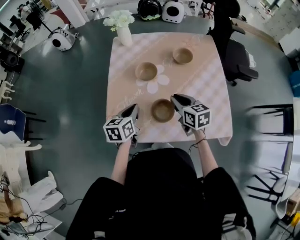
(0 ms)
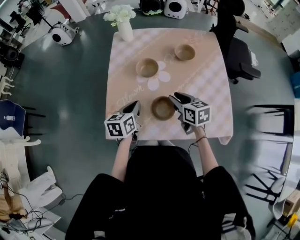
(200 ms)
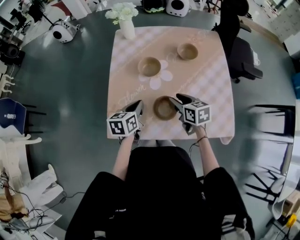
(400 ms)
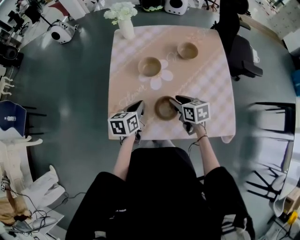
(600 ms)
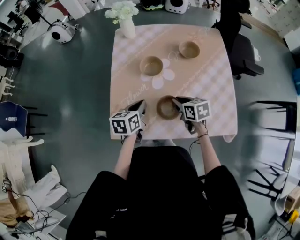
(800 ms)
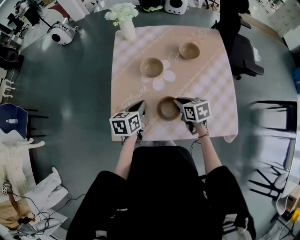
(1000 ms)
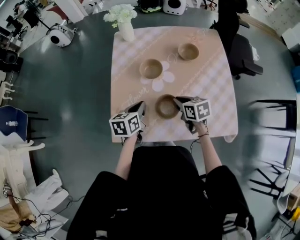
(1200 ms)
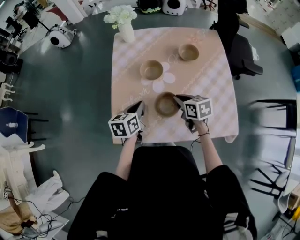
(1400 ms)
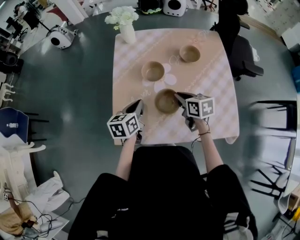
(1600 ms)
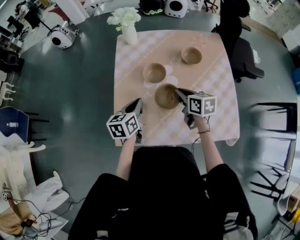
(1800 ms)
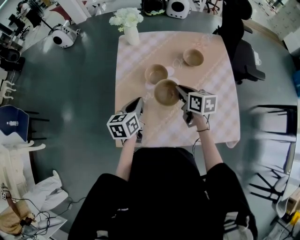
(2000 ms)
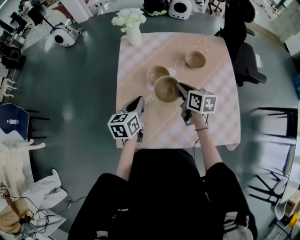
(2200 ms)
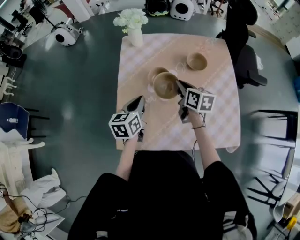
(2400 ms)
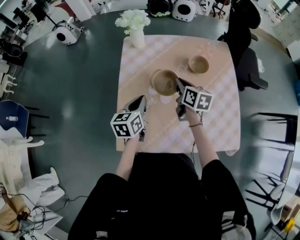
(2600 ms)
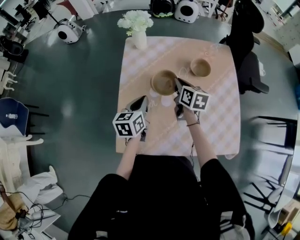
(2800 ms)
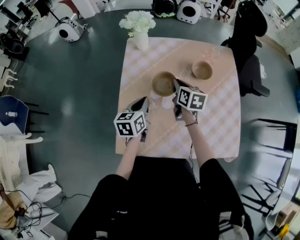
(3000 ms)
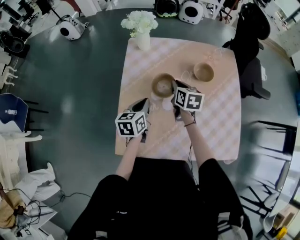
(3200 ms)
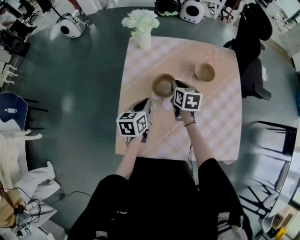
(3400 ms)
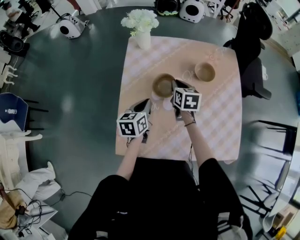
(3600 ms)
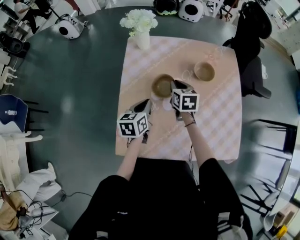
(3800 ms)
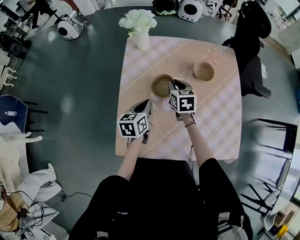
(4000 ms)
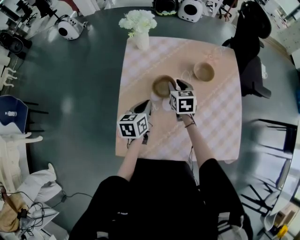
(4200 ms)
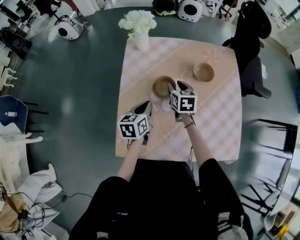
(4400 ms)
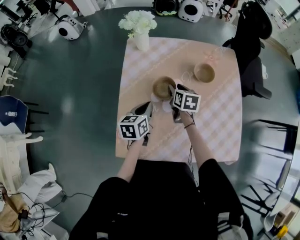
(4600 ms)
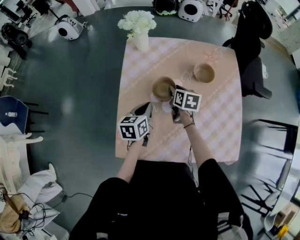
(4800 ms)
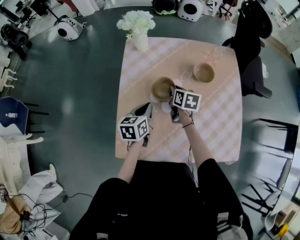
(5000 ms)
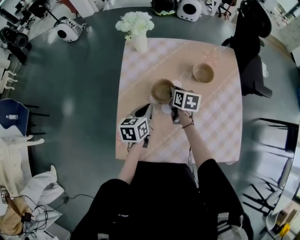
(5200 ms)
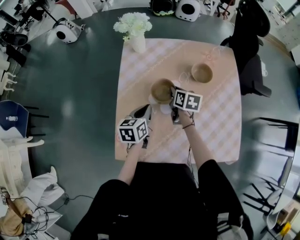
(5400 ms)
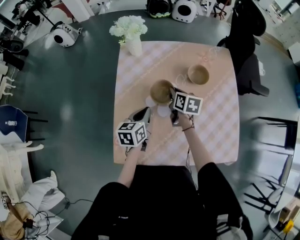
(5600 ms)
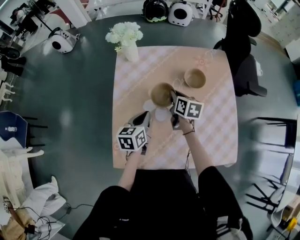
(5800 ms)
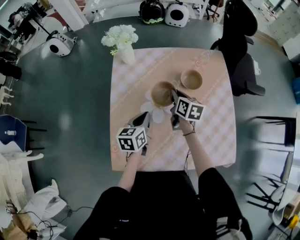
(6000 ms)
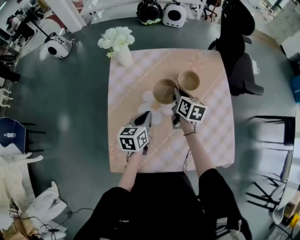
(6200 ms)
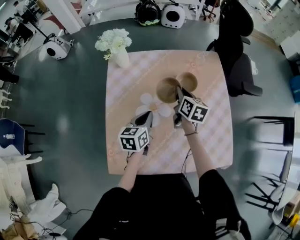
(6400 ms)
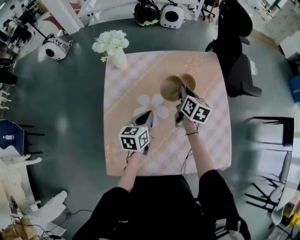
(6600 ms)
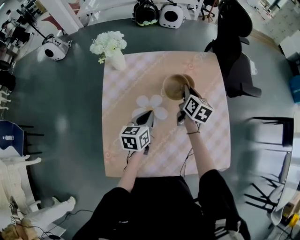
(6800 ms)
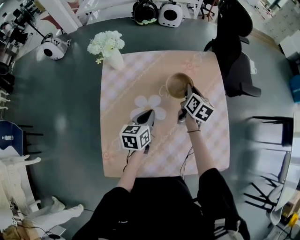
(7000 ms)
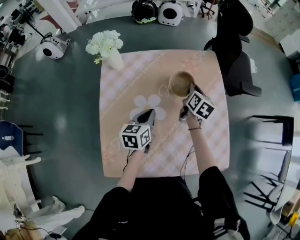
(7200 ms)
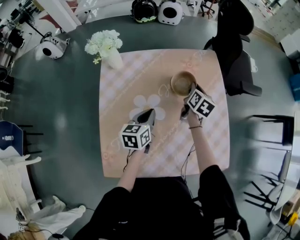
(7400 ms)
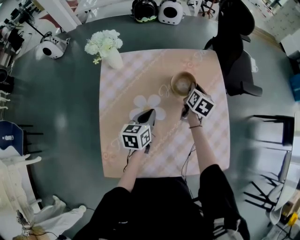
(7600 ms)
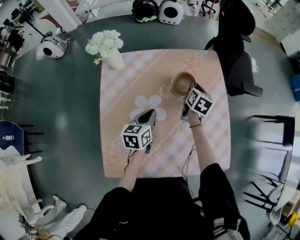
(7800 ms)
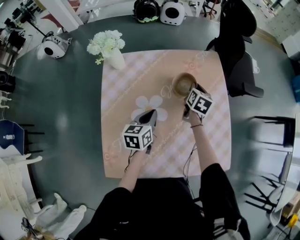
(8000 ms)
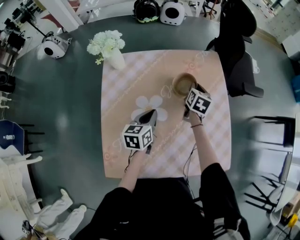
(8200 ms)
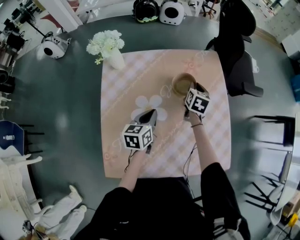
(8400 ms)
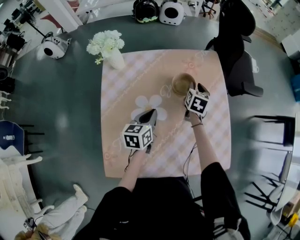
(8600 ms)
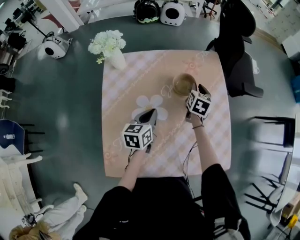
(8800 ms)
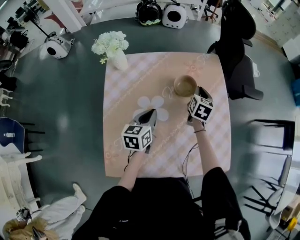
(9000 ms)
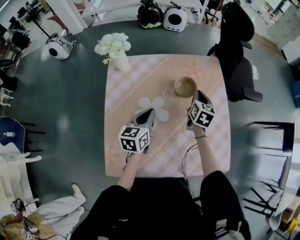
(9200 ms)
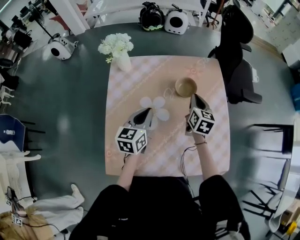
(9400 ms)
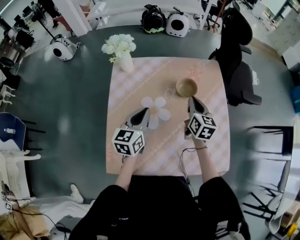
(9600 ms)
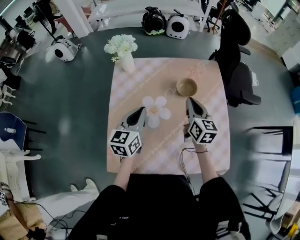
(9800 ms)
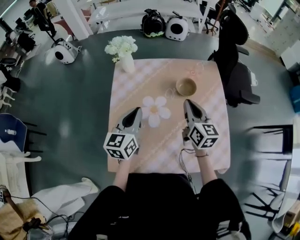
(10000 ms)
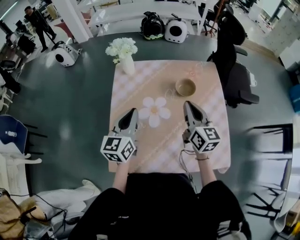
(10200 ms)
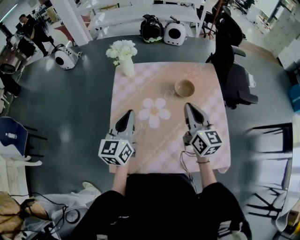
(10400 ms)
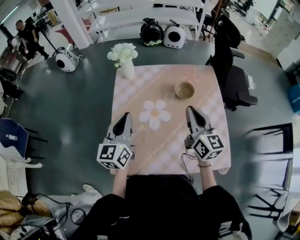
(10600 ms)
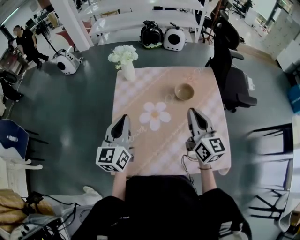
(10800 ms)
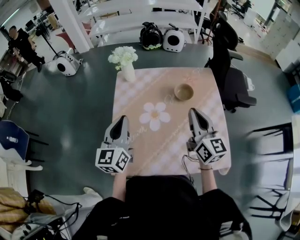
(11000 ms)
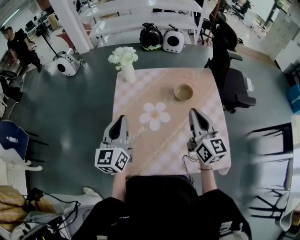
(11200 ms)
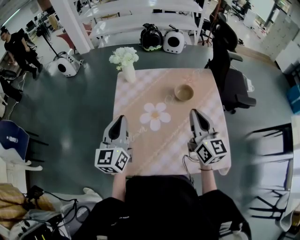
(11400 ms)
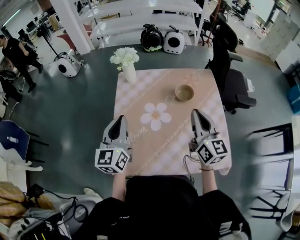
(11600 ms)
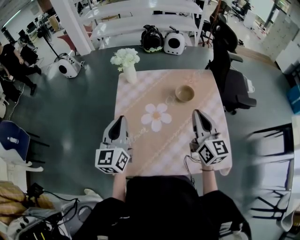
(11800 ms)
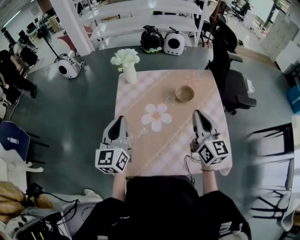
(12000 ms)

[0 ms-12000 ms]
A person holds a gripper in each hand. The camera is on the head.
0 ms to 1600 ms: The right gripper changes place by approximately 5 cm, and opens, then closes once more.
1600 ms to 3000 ms: The left gripper goes some 5 cm forward; the right gripper goes some 15 cm forward.
3000 ms to 4400 ms: The right gripper opens its fingers.
4400 ms to 6000 ms: The right gripper heads to the right, covering approximately 5 cm, rotates some 20 degrees, and closes up.
6000 ms to 7600 ms: The right gripper is displaced to the right and forward by about 20 cm, and rotates roughly 20 degrees. Meanwhile the left gripper heads to the right and forward, covering approximately 10 cm.
7600 ms to 9000 ms: The grippers move only a little.
9000 ms to 10400 ms: The right gripper goes roughly 25 cm backward, upward and to the left, and rotates about 40 degrees. The left gripper moves upward, to the left and backward, about 20 cm, and rotates roughly 30 degrees.
10400 ms to 12000 ms: The right gripper changes place by roughly 5 cm. Meanwhile the left gripper moves about 5 cm.

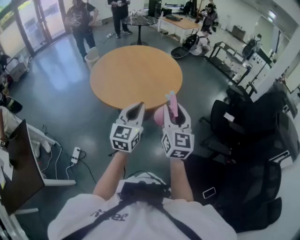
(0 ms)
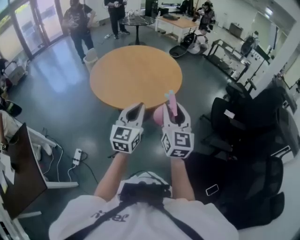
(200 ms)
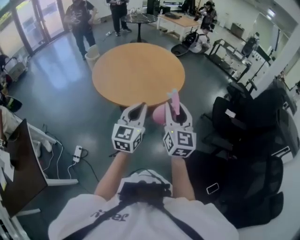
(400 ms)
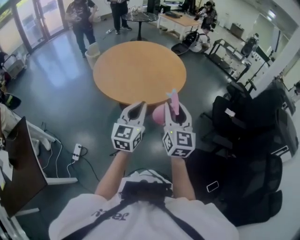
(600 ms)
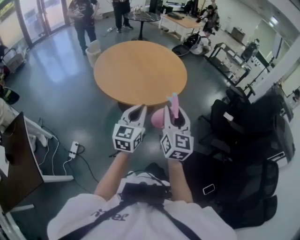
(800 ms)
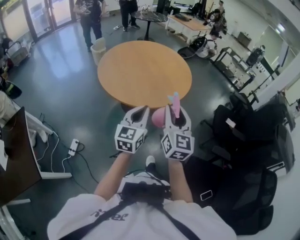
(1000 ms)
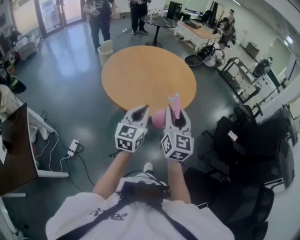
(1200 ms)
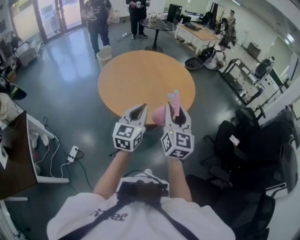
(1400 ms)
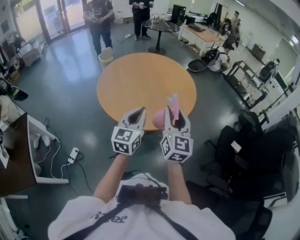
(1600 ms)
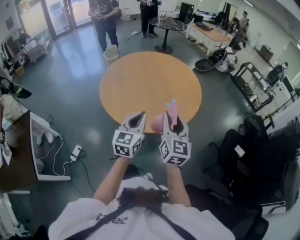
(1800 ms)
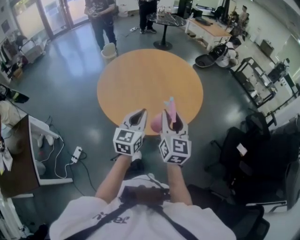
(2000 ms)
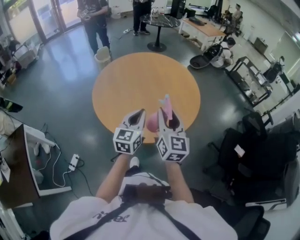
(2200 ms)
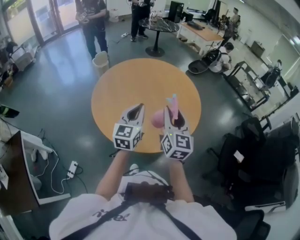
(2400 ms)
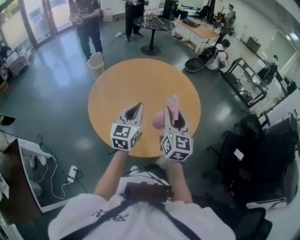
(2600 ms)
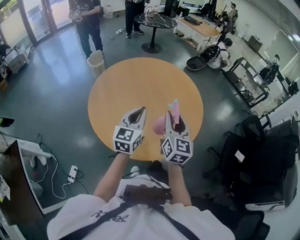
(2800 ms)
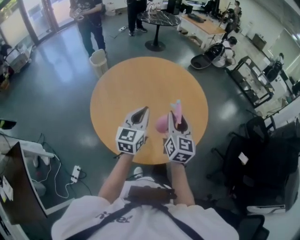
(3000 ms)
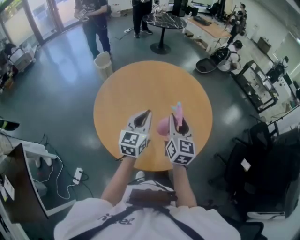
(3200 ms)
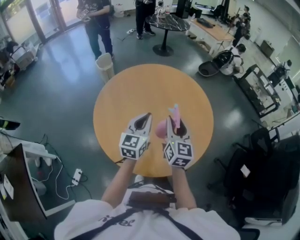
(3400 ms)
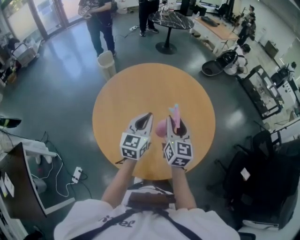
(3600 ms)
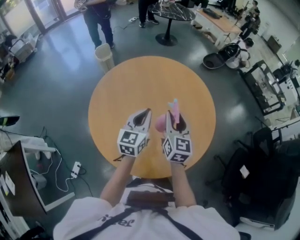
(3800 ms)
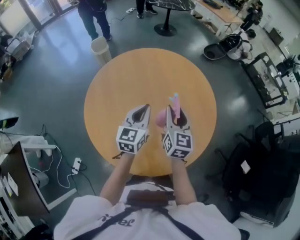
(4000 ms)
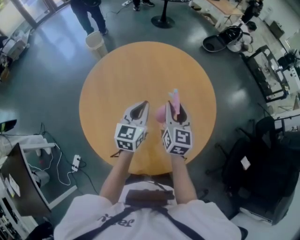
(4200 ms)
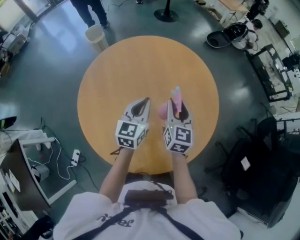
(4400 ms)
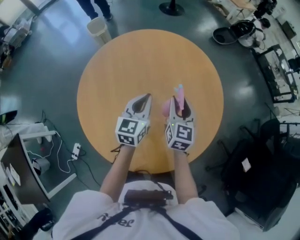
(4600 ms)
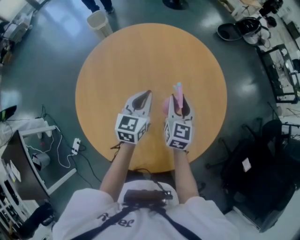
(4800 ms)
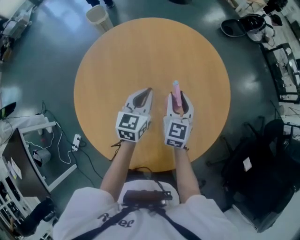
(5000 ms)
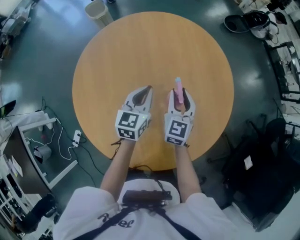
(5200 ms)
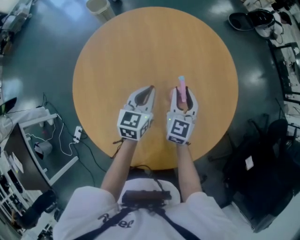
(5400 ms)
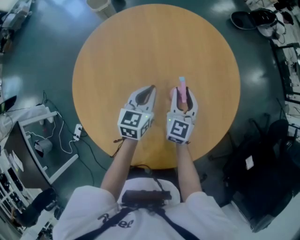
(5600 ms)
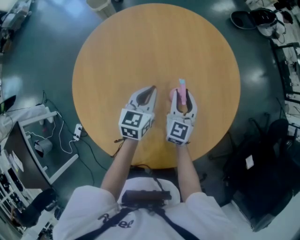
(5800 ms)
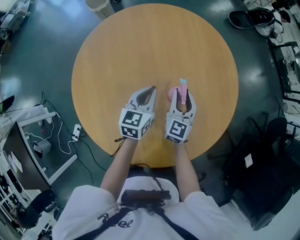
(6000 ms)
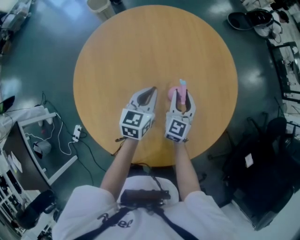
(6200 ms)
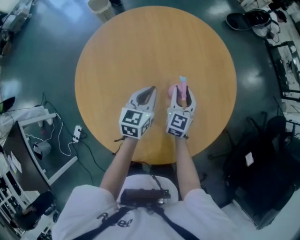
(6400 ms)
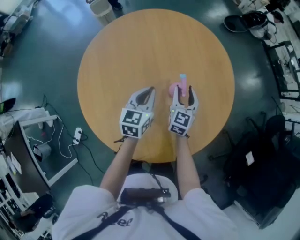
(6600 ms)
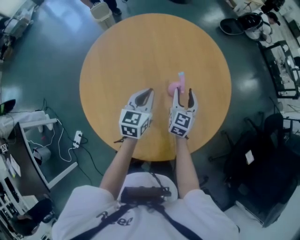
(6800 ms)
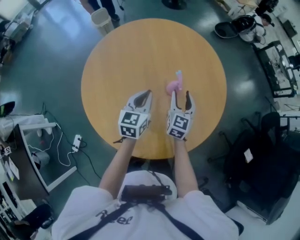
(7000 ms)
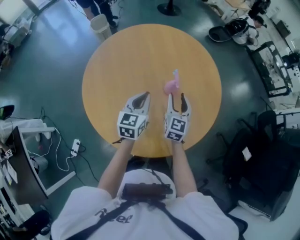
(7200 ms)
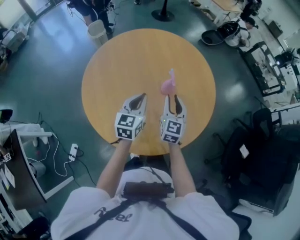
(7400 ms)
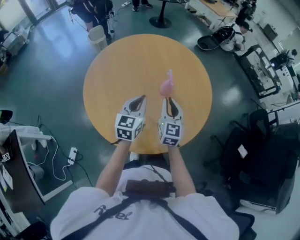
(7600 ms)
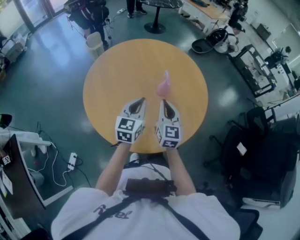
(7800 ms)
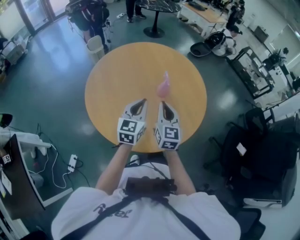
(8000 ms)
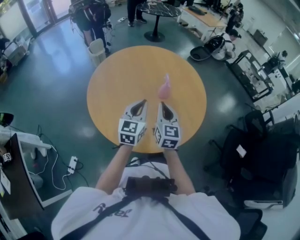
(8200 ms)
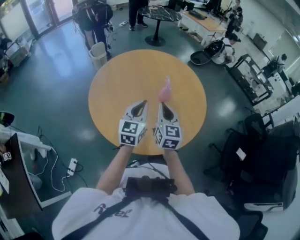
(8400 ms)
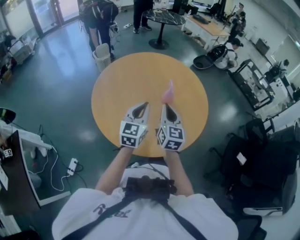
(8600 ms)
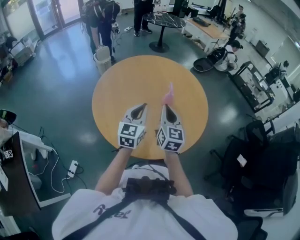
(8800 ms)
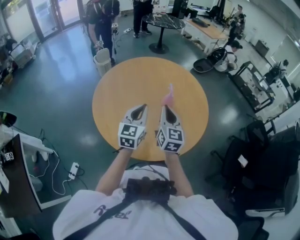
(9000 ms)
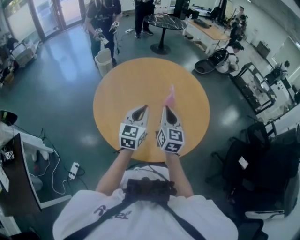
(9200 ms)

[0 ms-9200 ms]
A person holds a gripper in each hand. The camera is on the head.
0 ms to 1600 ms: Both grippers travel together forward, some 15 cm.
1600 ms to 3000 ms: Both grippers travel together forward, some 25 cm.
3000 ms to 4600 ms: Both grippers travel together forward and downward, some 20 cm.
4600 ms to 6200 ms: The grippers both shift downward by roughly 10 cm.
6200 ms to 7600 ms: Both grippers move backward and upward, about 20 cm. The right gripper closes its fingers.
7600 ms to 9200 ms: Both grippers travel together upward, some 5 cm.

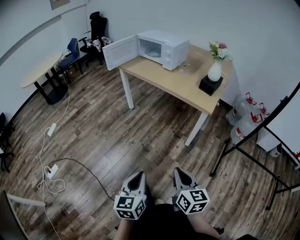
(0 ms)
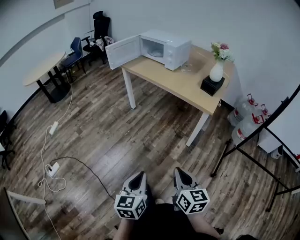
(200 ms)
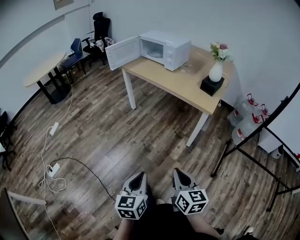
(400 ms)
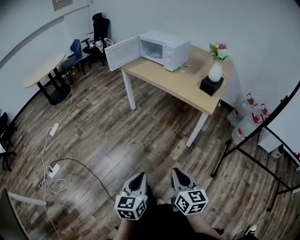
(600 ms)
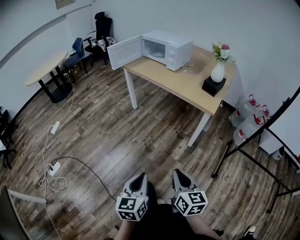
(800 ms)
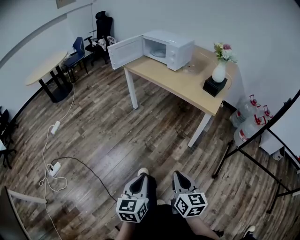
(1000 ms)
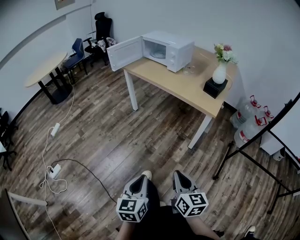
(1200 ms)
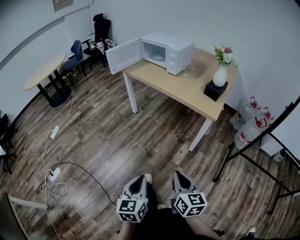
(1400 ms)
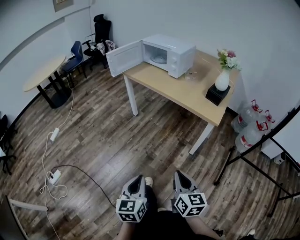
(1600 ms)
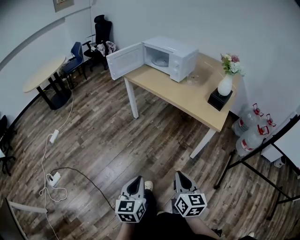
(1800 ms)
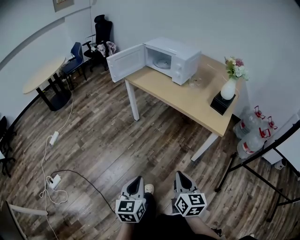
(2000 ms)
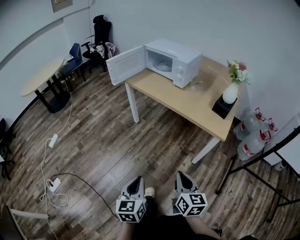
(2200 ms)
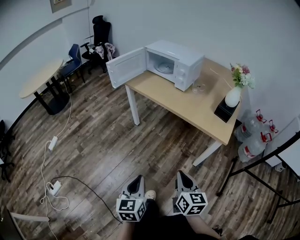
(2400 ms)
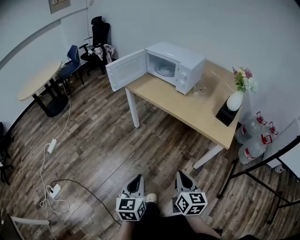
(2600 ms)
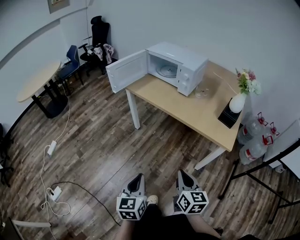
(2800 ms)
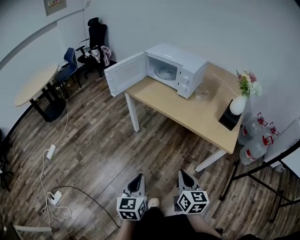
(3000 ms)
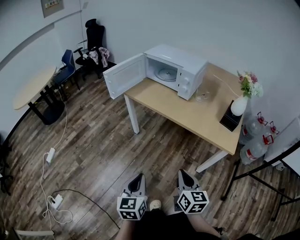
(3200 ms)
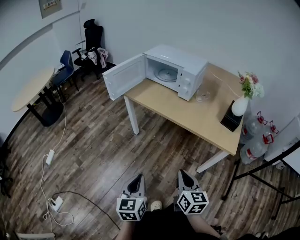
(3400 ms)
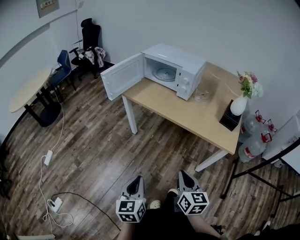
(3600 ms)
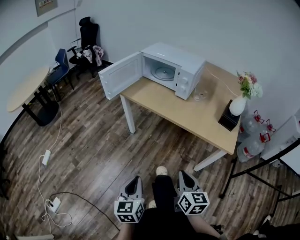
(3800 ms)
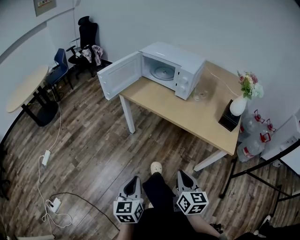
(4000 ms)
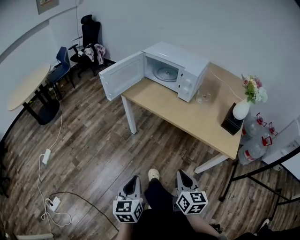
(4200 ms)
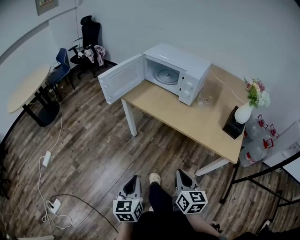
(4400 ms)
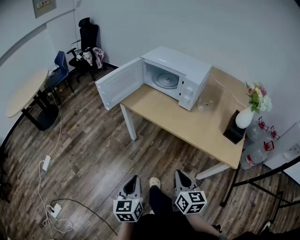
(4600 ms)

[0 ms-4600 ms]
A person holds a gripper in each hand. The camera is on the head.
0 ms to 1600 ms: The grippers both shift forward by roughly 5 cm.
1600 ms to 3000 ms: The grippers both shift forward by about 25 cm.
3000 ms to 4600 ms: Both grippers travel together forward, about 15 cm.
